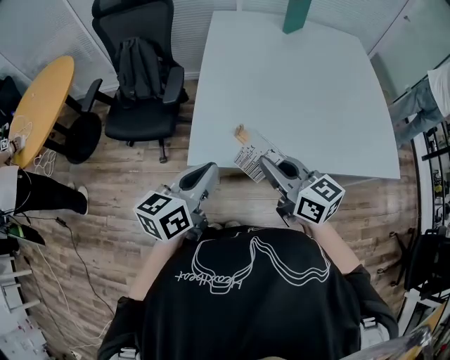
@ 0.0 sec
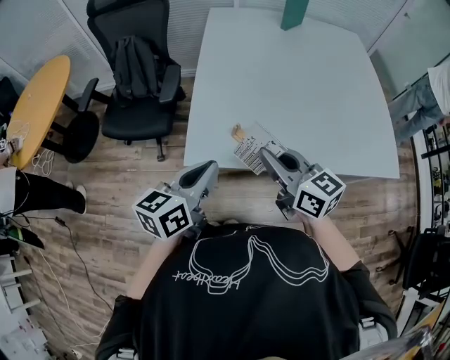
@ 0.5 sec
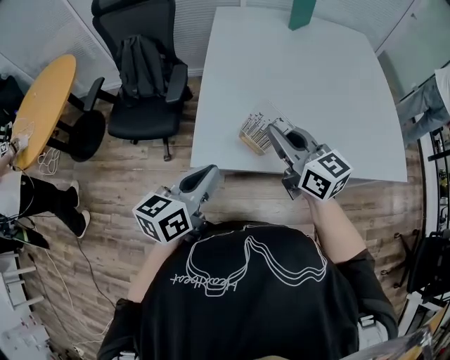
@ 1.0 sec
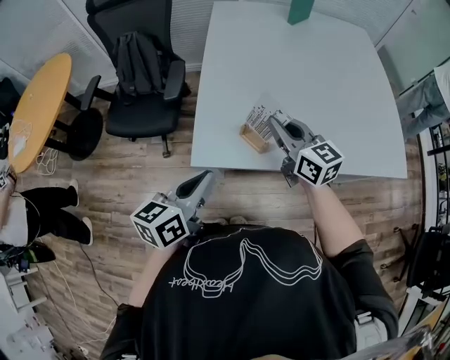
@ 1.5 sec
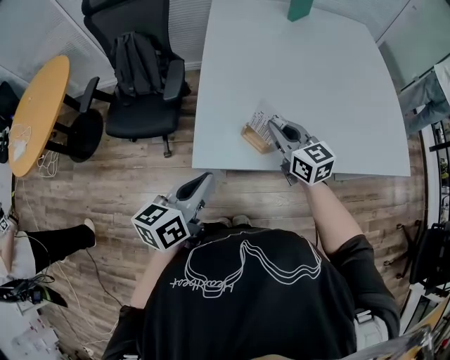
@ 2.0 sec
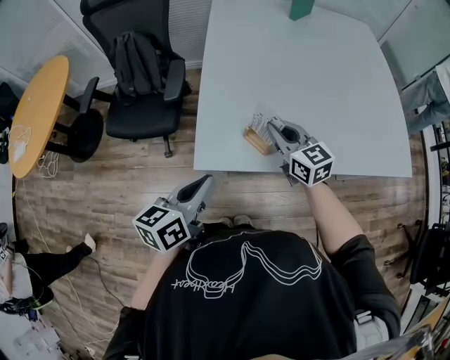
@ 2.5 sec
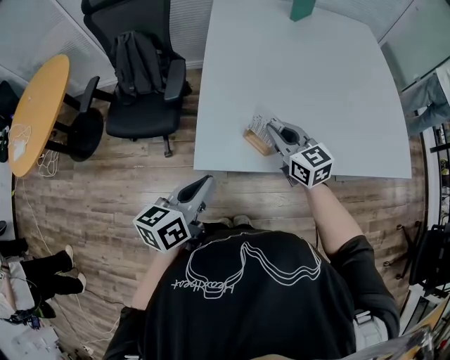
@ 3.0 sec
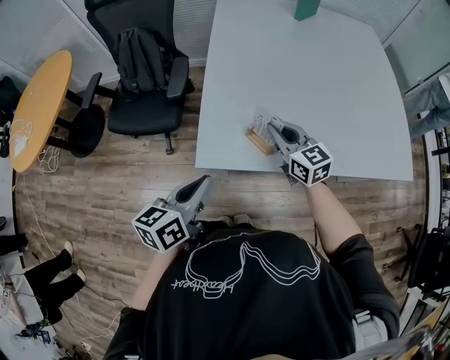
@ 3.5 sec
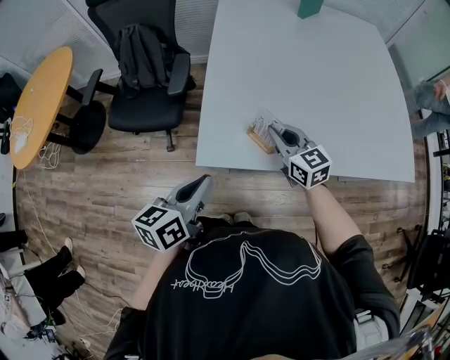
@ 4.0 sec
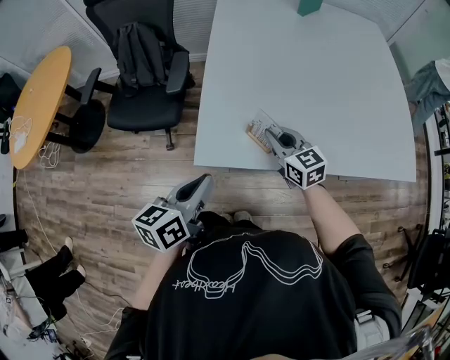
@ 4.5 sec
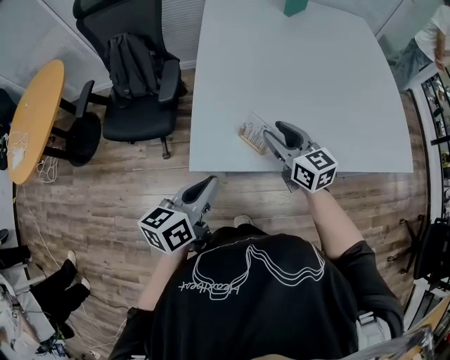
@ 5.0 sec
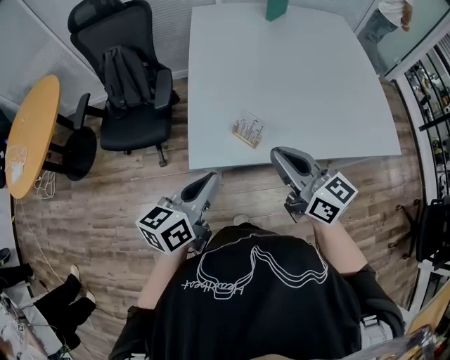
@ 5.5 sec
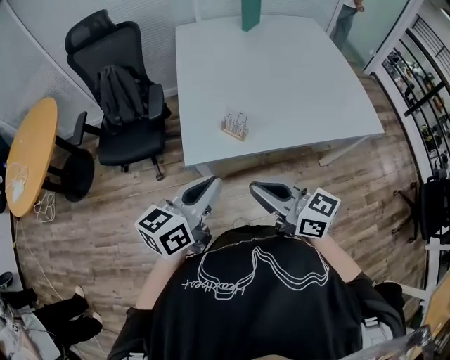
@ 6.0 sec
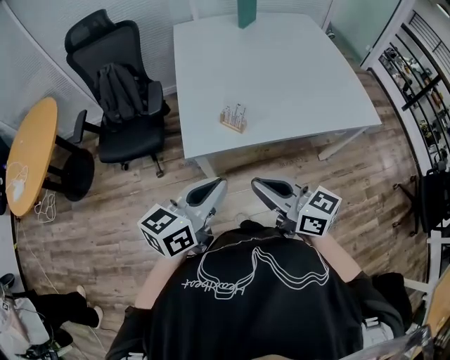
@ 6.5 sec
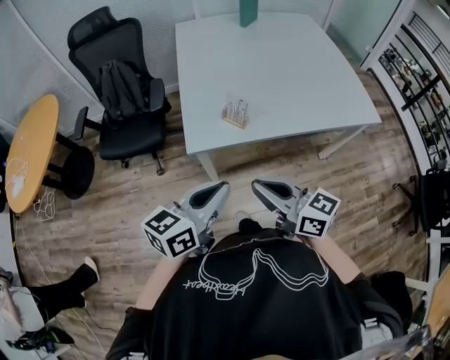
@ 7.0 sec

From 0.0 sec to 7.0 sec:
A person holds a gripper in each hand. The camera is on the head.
From 0.0 sec to 2.0 sec: The right gripper shifts roughly 15 cm forward and downward.
From 2.0 sec to 3.5 sec: The grippers make only small movements.
From 3.5 sec to 5.0 sec: The right gripper opens.
From 5.0 sec to 7.0 sec: The left gripper travels backward and upward by about 20 cm, and swivels approximately 20 degrees. The right gripper travels backward by roughly 30 cm, and closes up.

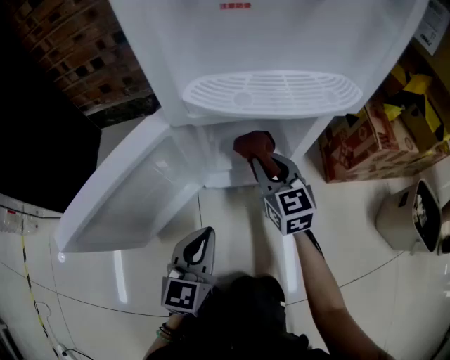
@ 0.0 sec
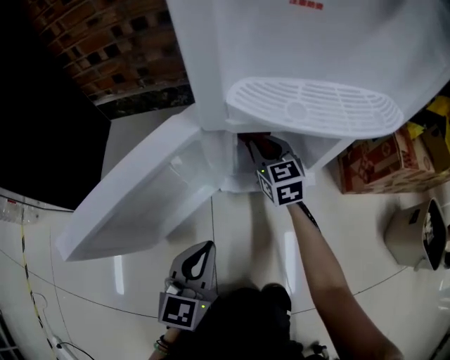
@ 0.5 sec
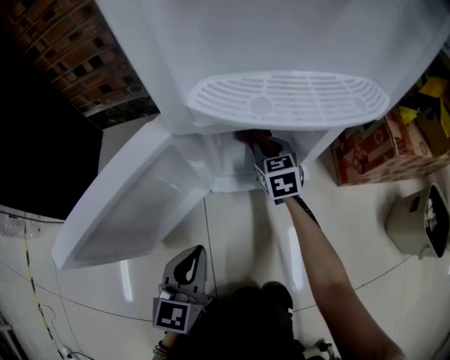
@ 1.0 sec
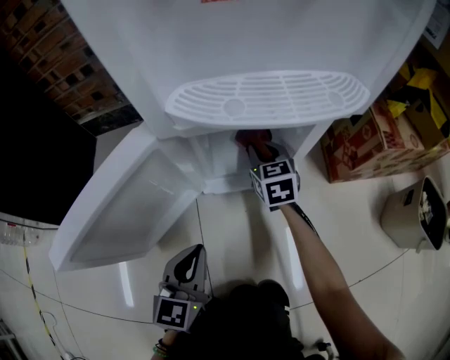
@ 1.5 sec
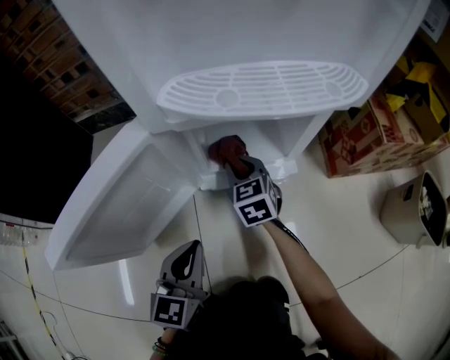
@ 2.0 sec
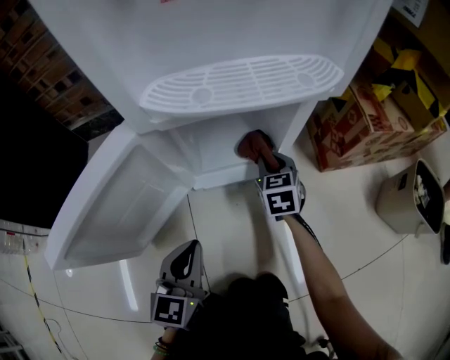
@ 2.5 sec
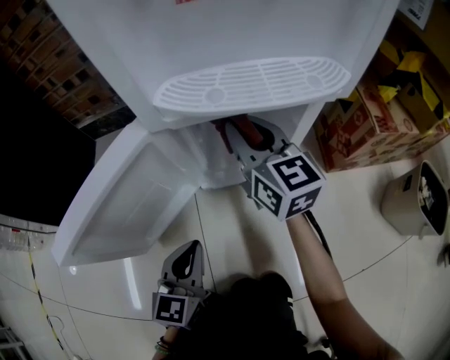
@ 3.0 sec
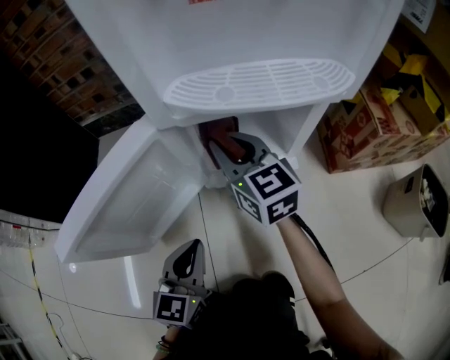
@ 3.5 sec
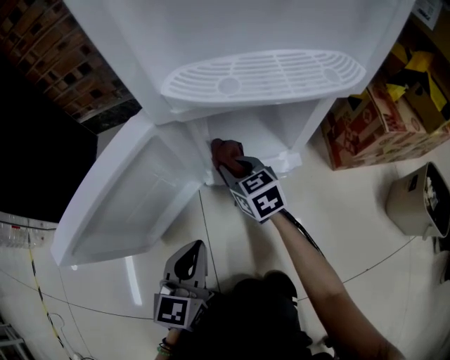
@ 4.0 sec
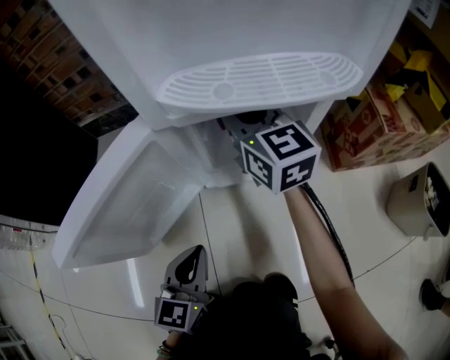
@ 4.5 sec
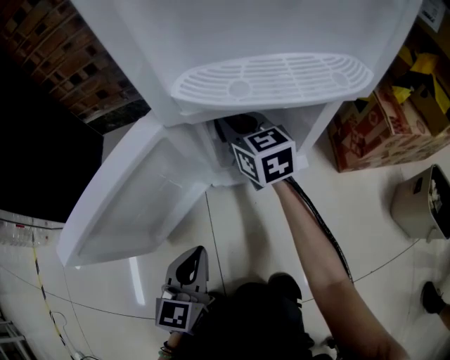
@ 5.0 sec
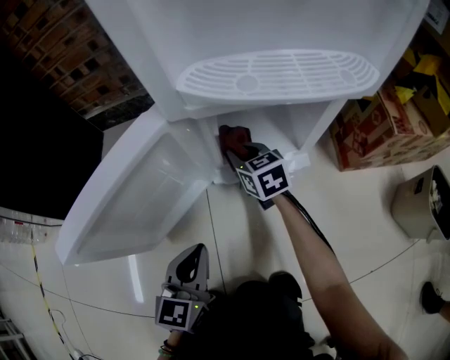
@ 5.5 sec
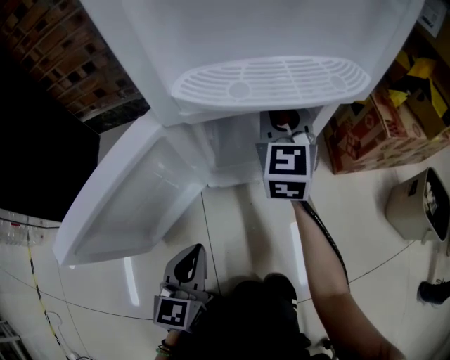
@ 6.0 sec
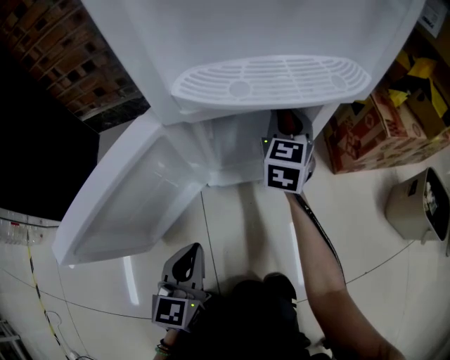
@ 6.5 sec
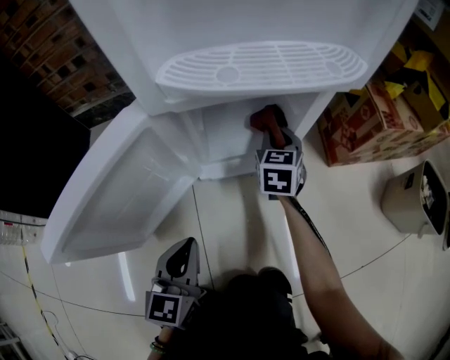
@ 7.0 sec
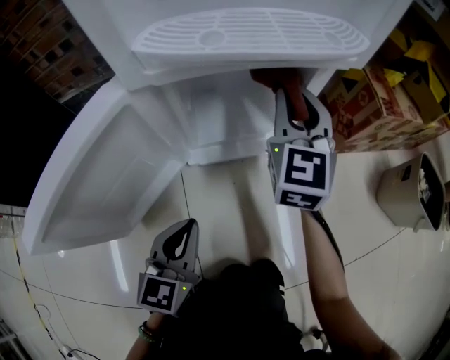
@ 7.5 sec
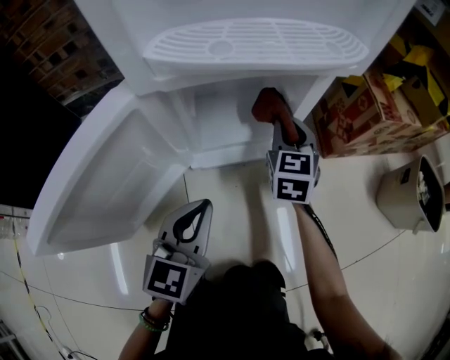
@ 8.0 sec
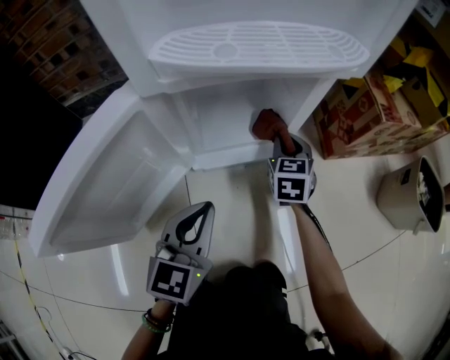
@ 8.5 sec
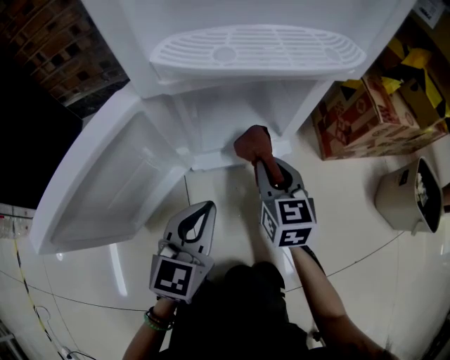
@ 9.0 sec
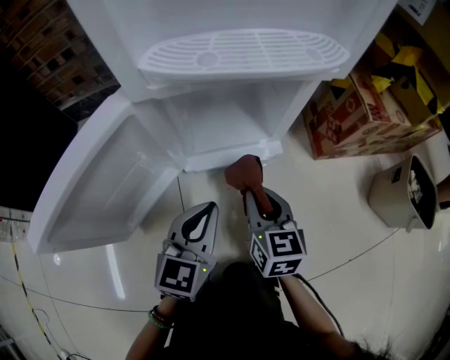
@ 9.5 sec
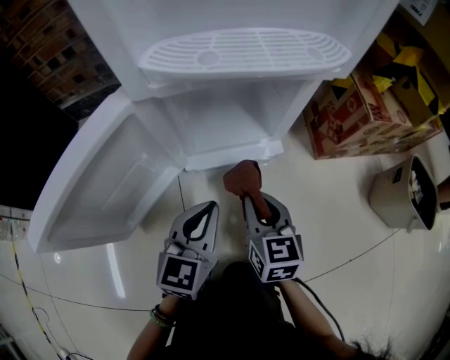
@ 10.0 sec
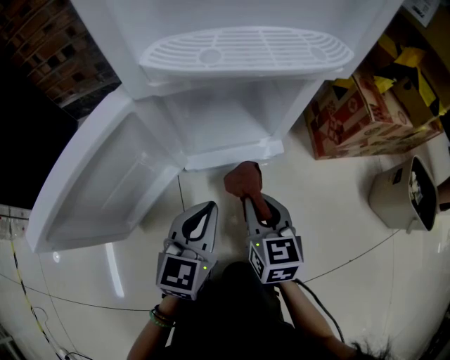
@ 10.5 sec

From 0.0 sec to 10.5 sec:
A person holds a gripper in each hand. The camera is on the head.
From 0.0 sec to 2.0 sec: The right gripper travels downward and to the left by approximately 10 cm, and reaches some 10 cm forward, then returns.
From 2.0 sec to 4.0 sec: The right gripper moves about 20 cm upward and comes back.
From 4.0 sec to 6.5 sec: The right gripper goes up and down, some 20 cm each way, reversing 3 times, and turns by some 40 degrees.
From 6.5 sec to 8.5 sec: The right gripper moves up and down over roughly 20 cm, changing direction 2 times; the left gripper shifts roughly 10 cm forward and to the right.
From 8.5 sec to 10.5 sec: The right gripper heads backward, covering some 15 cm.

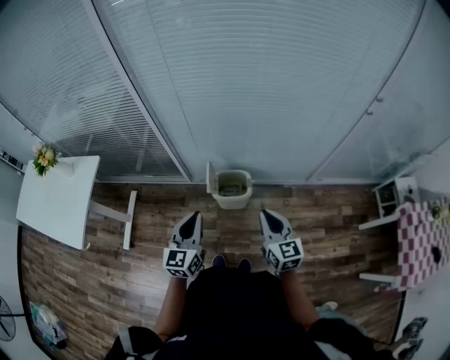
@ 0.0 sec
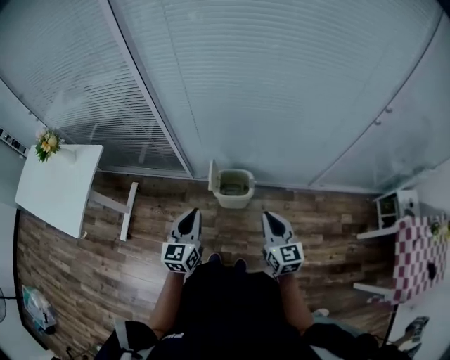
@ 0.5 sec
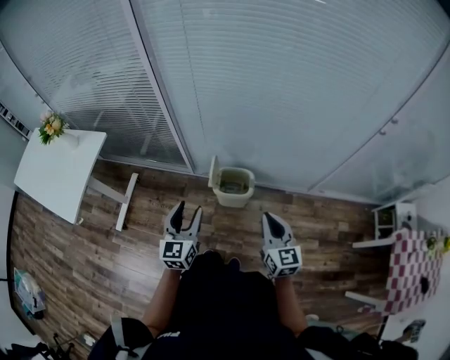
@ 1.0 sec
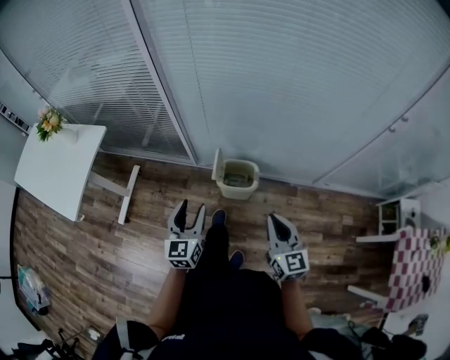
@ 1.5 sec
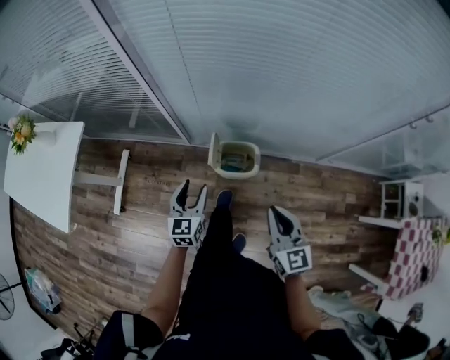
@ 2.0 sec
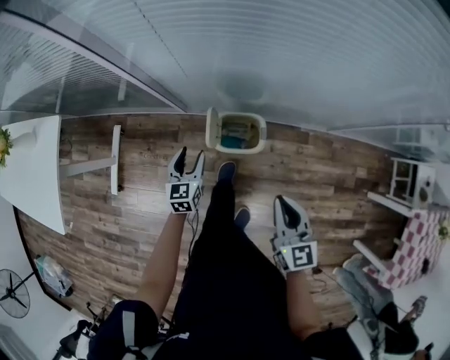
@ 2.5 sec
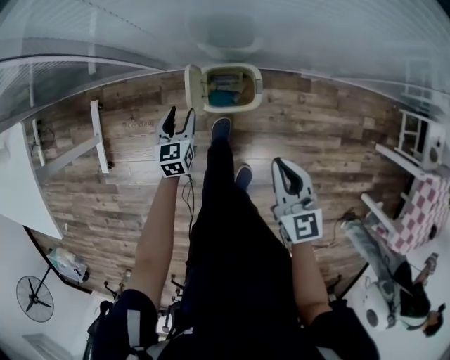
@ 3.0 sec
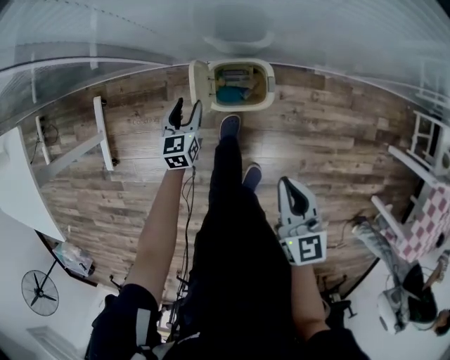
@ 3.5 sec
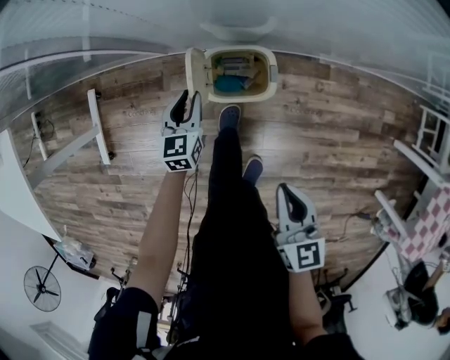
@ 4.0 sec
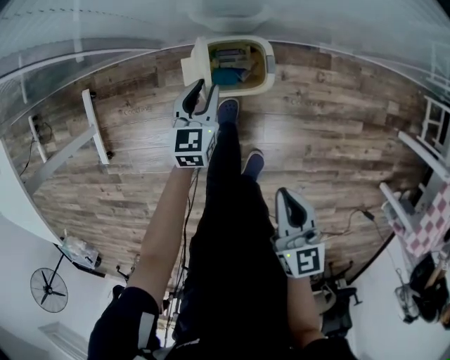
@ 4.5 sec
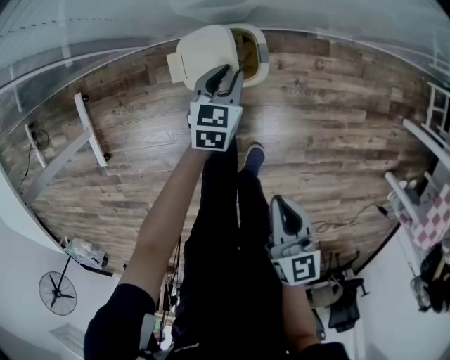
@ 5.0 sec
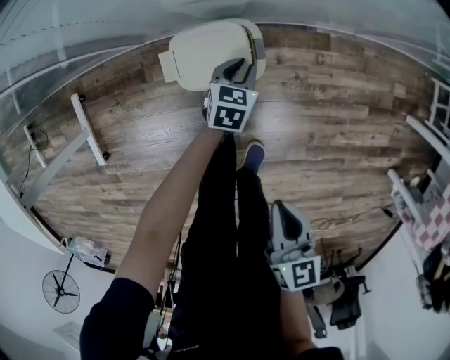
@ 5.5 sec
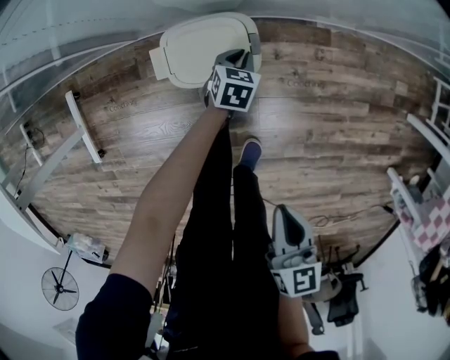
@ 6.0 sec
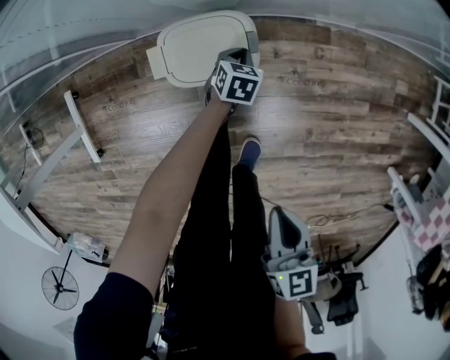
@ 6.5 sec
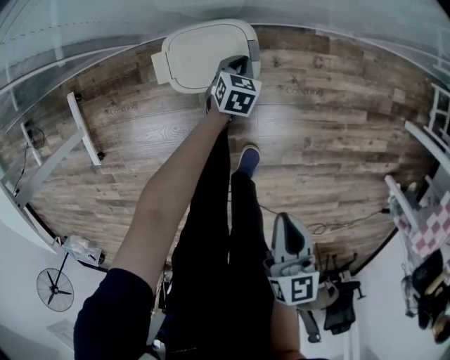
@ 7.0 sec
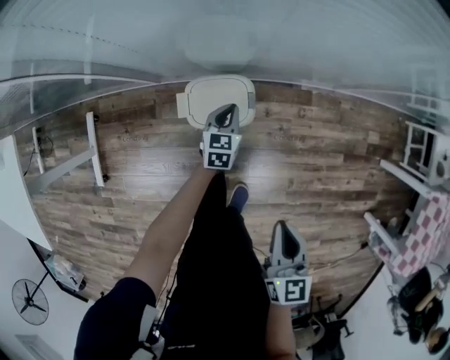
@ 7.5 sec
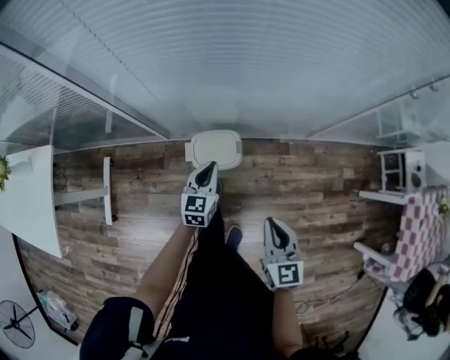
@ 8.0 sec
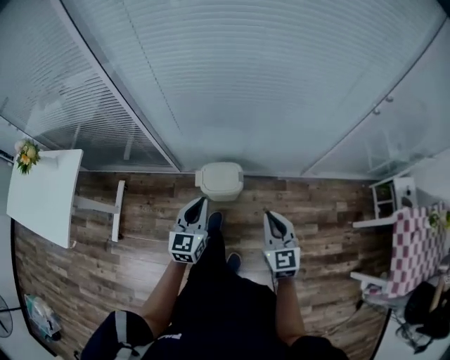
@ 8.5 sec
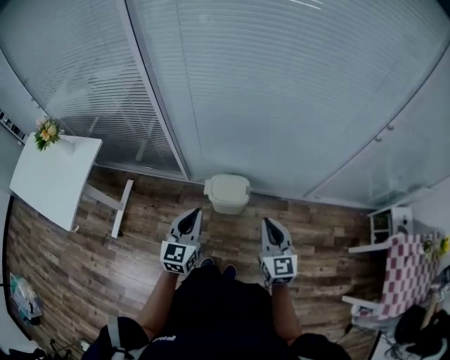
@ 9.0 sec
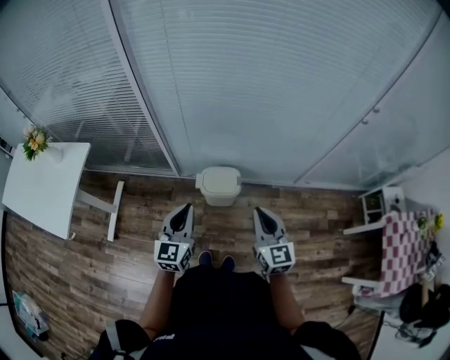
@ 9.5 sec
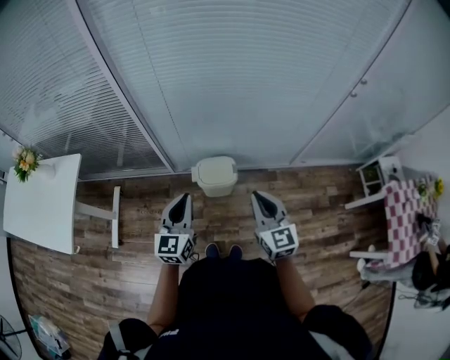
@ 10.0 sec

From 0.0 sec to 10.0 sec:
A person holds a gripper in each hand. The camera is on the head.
From 0.0 sec to 2.0 sec: The left gripper shifts roughly 20 cm downward and forward, and opens, while the right gripper changes place by some 5 cm.
From 2.0 sec to 4.0 sec: The right gripper heads downward, covering about 20 cm, and swivels roughly 30 degrees; the left gripper goes approximately 30 cm downward and forward, and closes its fingers.
From 4.0 sec to 6.0 sec: The right gripper shifts some 5 cm backward. The left gripper is displaced to the right and downward by approximately 30 cm, and rotates some 30 degrees.
From 6.0 sec to 8.0 sec: The right gripper shifts about 15 cm upward, and rotates some 30 degrees. The left gripper travels upward by approximately 35 cm, and angles its fingers upward, by about 30 degrees.
From 8.0 sec to 10.0 sec: The right gripper goes some 15 cm upward and to the left. Meanwhile the left gripper goes some 30 cm upward, backward and to the left.
